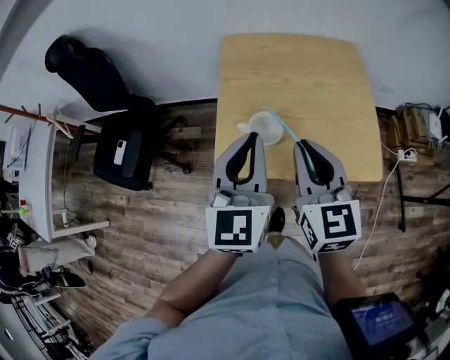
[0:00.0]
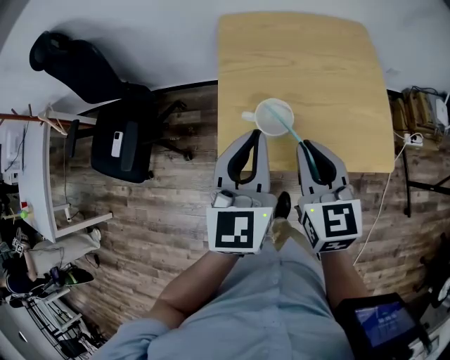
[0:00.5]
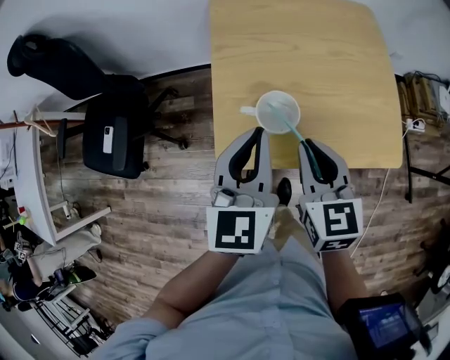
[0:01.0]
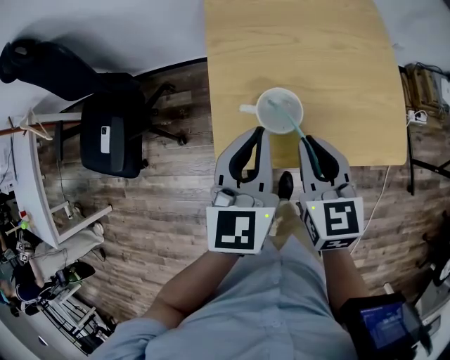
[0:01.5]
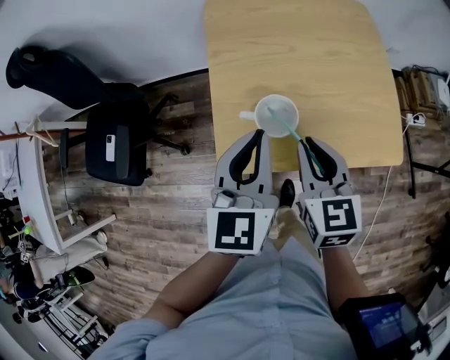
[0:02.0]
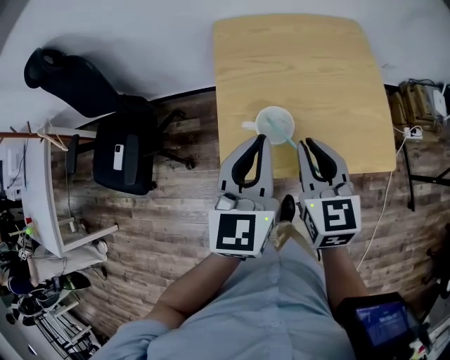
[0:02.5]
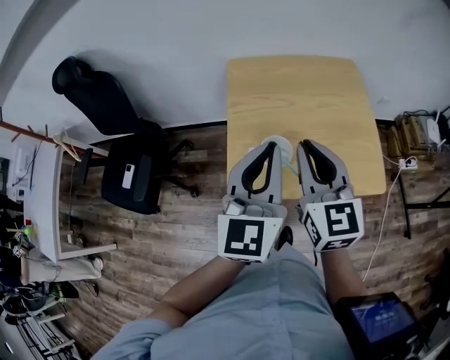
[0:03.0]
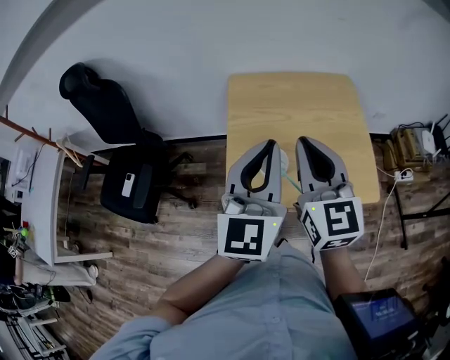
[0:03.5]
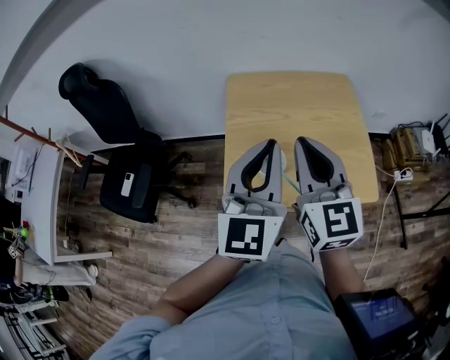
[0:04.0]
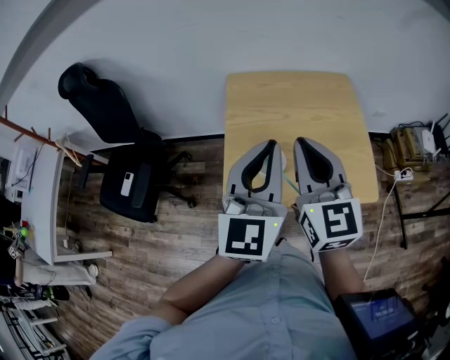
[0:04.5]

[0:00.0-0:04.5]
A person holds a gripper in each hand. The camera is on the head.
0:00.0 to 0:02.0: The grippers both shift downward by approximately 10 cm.
0:02.0 to 0:04.5: The two grippers go roughly 20 cm upward. The right gripper swivels approximately 30 degrees. Meanwhile the left gripper swivels about 20 degrees.

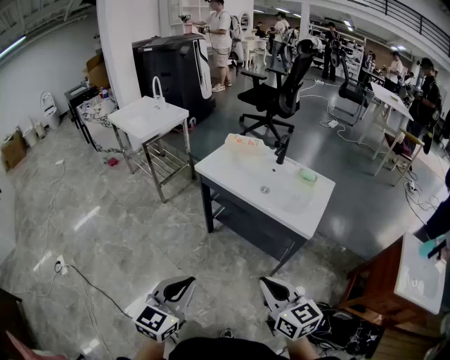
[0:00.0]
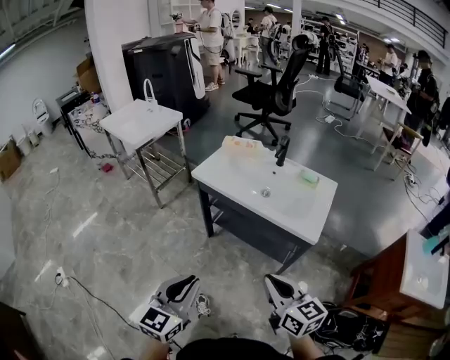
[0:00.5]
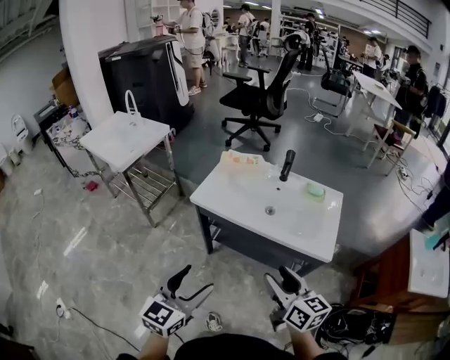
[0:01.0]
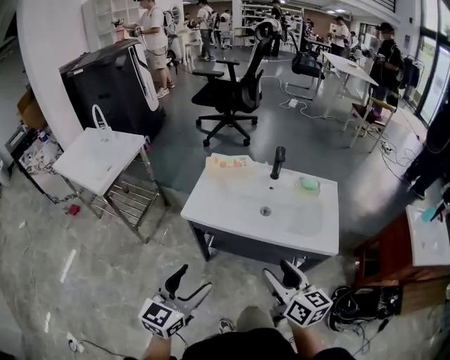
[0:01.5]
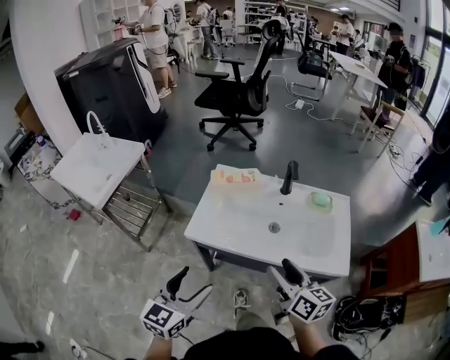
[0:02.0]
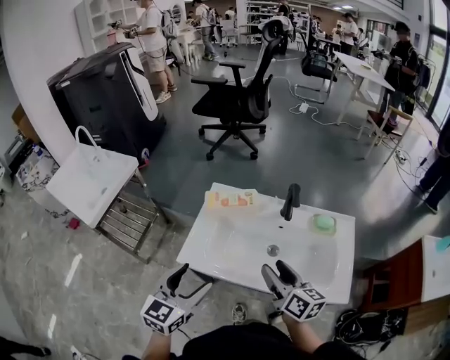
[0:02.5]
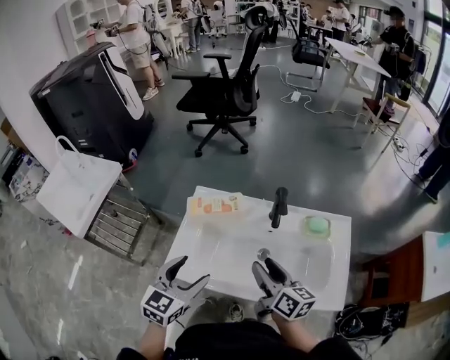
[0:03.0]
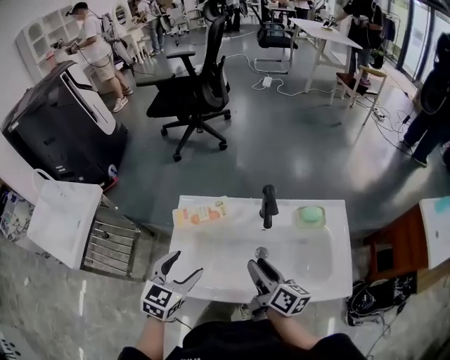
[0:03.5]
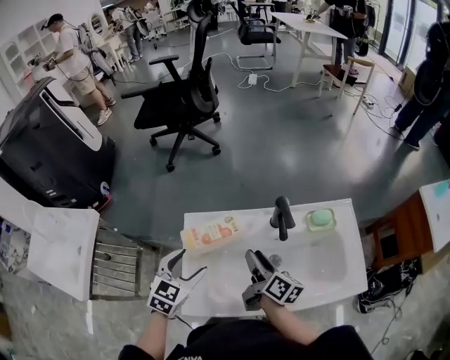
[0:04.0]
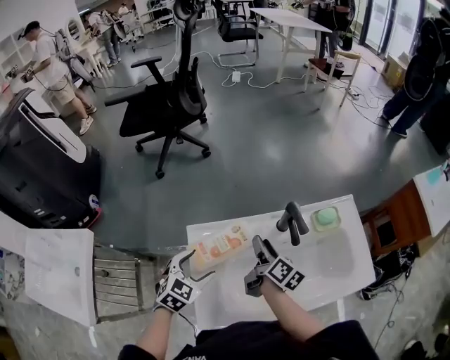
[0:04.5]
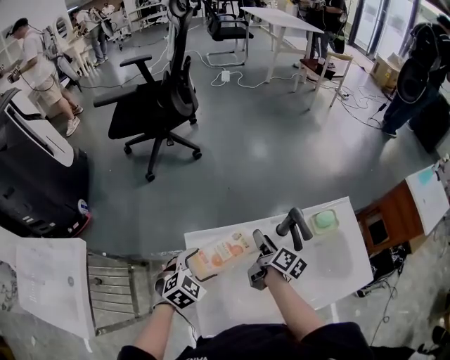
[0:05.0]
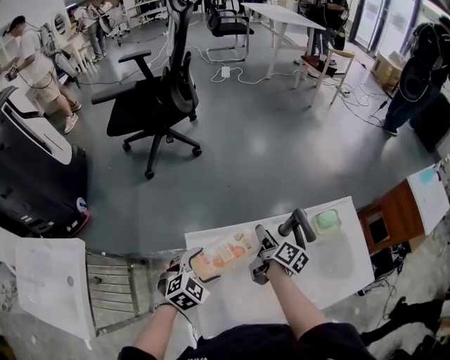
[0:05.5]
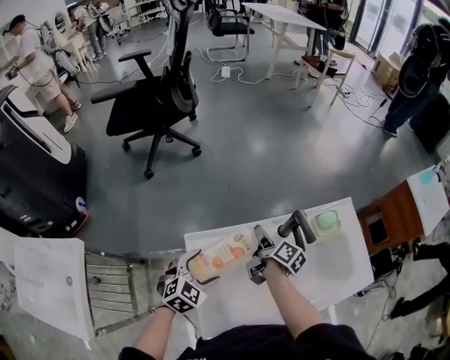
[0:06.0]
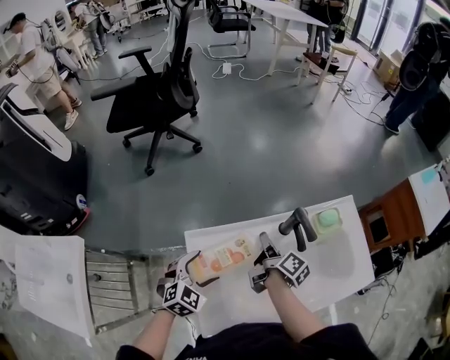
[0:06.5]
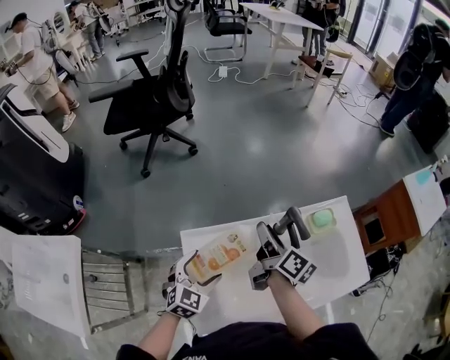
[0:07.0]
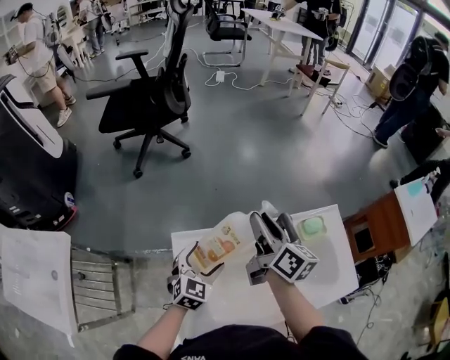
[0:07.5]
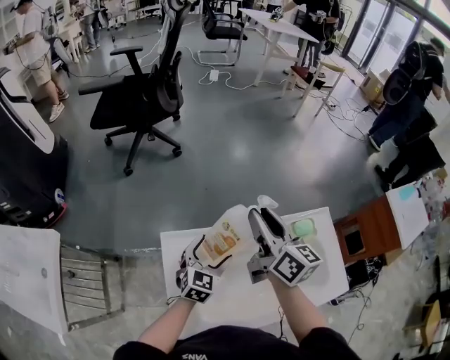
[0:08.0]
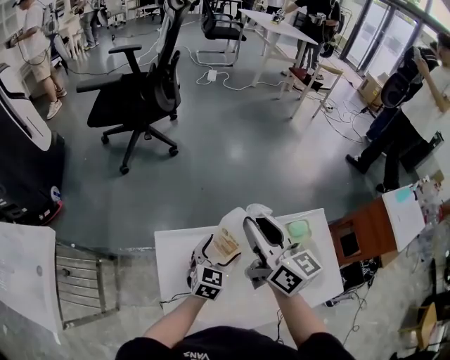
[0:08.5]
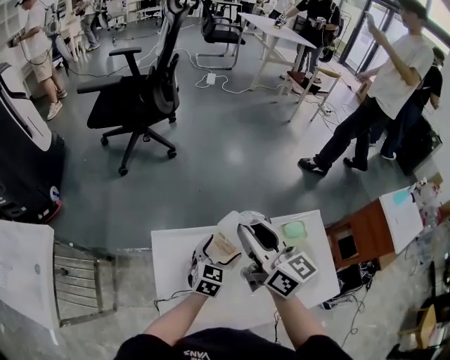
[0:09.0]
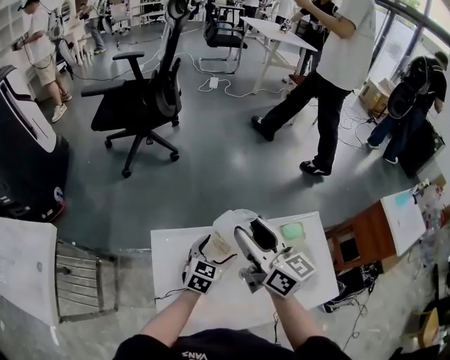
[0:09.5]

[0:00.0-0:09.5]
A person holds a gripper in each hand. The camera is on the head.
0:00.0 to 0:02.0: The left gripper moves forward and to the left, roughly 40 cm, and opens. The right gripper goes some 35 cm forward, swivels some 40 degrees, and opens its fingers.
0:02.0 to 0:04.0: Both grippers move forward, approximately 35 cm. The left gripper rotates approximately 30 degrees; the right gripper swivels roughly 40 degrees.
0:04.0 to 0:05.5: The right gripper shifts about 15 cm forward. The left gripper is displaced downward and forward by approximately 10 cm, and rotates about 30 degrees.
0:05.5 to 0:07.5: The left gripper ends up about 5 cm from where it was, and turns by some 30 degrees, while the right gripper is displaced upward by about 20 cm, and changes its angle by about 30 degrees.
0:07.5 to 0:09.5: The right gripper travels upward by about 5 cm, and changes its angle by roughly 30 degrees; the left gripper moves to the right, approximately 10 cm.

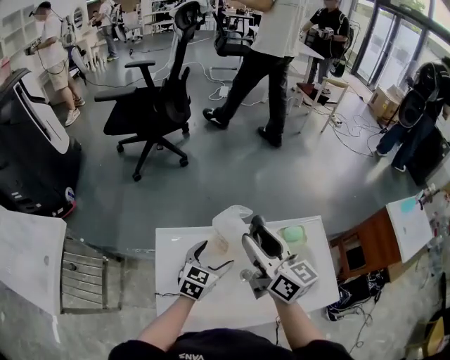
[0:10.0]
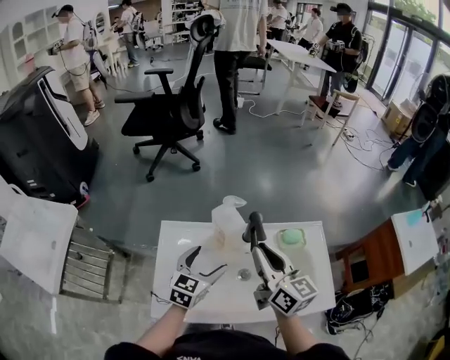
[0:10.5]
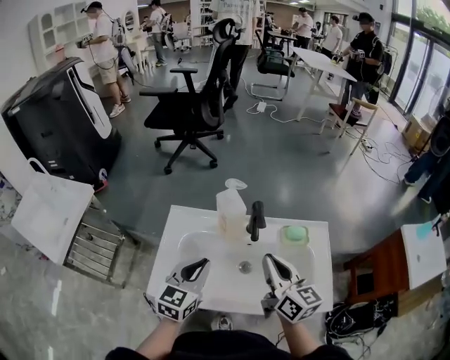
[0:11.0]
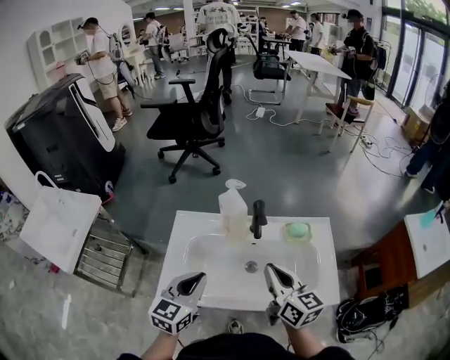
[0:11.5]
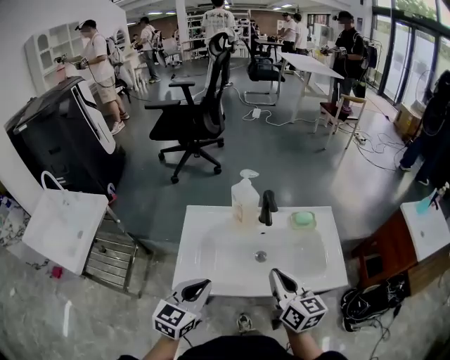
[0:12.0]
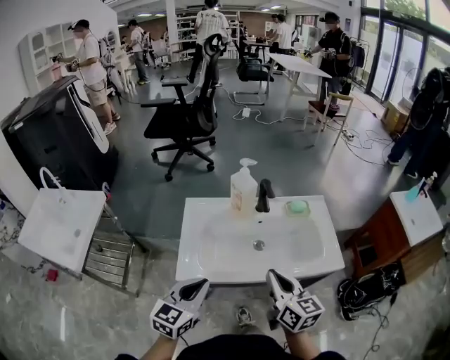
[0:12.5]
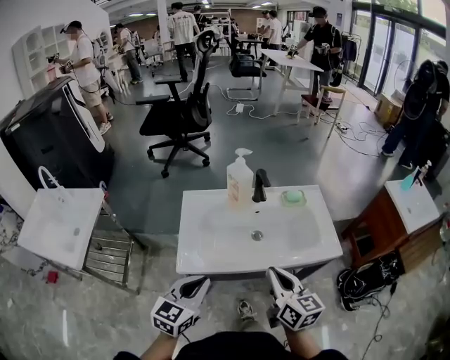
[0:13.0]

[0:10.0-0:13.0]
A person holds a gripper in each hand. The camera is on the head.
0:10.0 to 0:11.5: The left gripper is displaced backward and upward by roughly 25 cm, changes its angle by roughly 20 degrees, and closes its fingers. Meanwhile the right gripper shifts roughly 20 cm backward and to the right, and closes.
0:11.5 to 0:13.0: Both grippers move backward, about 15 cm.

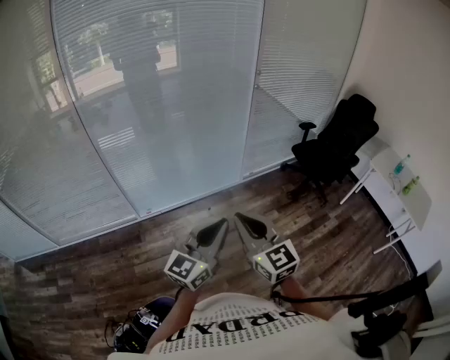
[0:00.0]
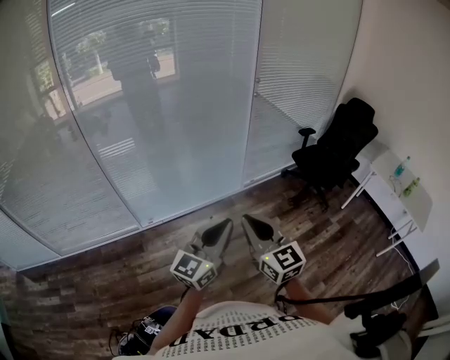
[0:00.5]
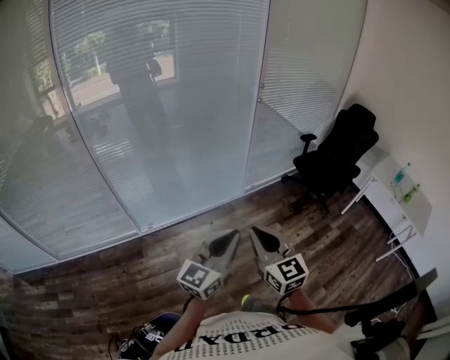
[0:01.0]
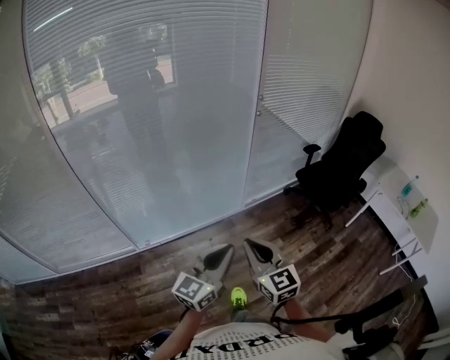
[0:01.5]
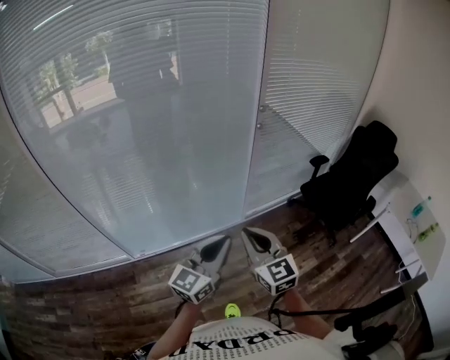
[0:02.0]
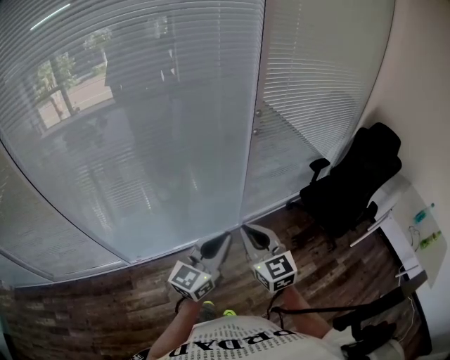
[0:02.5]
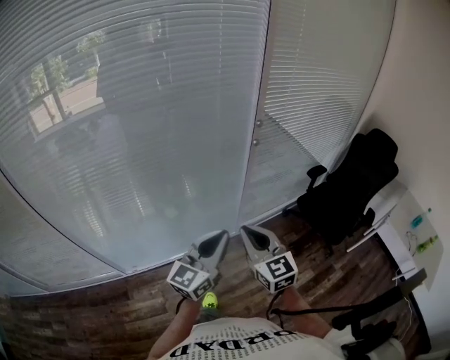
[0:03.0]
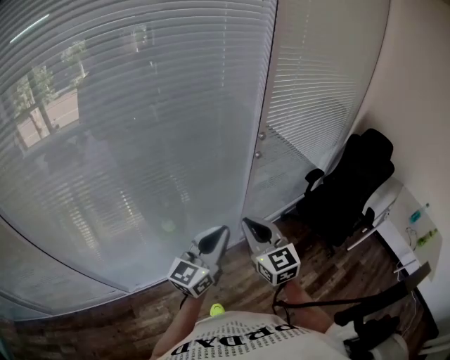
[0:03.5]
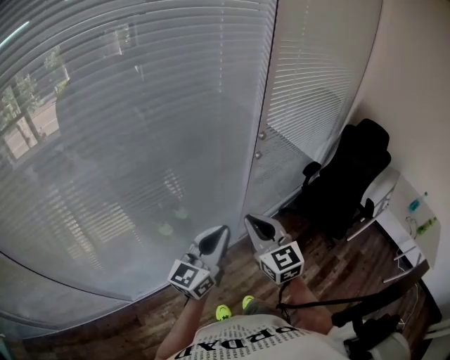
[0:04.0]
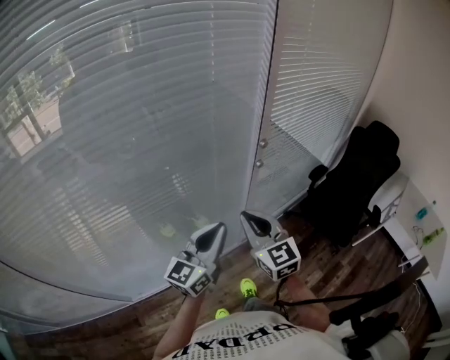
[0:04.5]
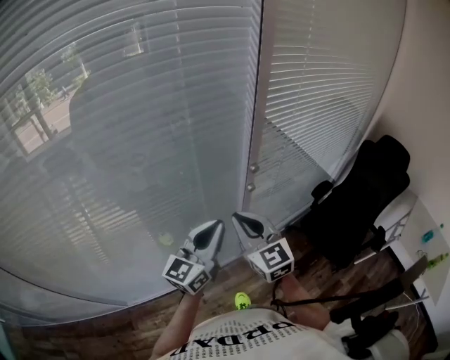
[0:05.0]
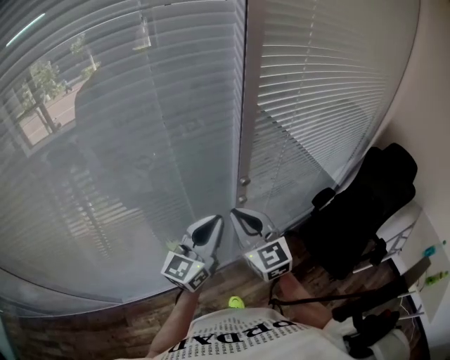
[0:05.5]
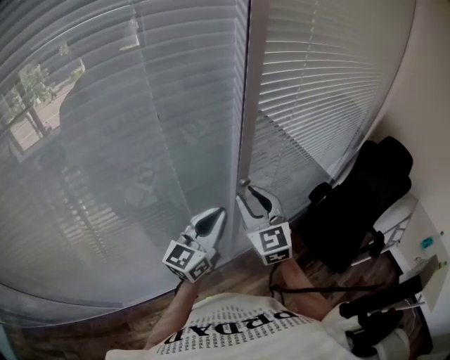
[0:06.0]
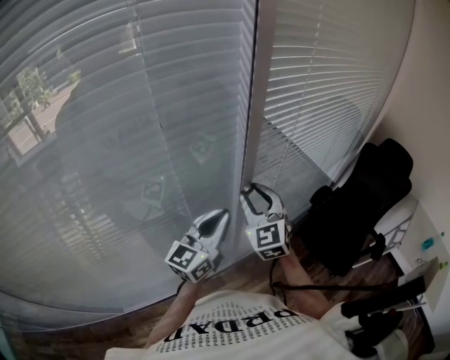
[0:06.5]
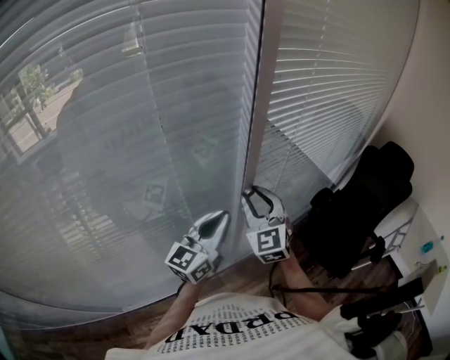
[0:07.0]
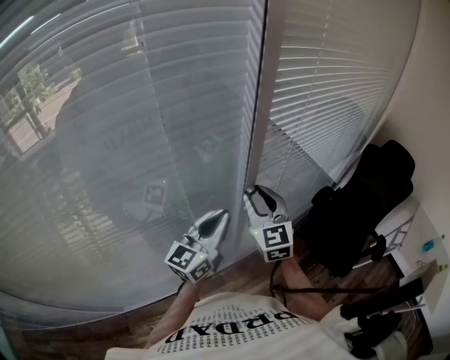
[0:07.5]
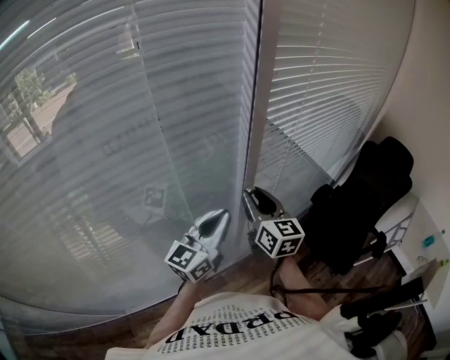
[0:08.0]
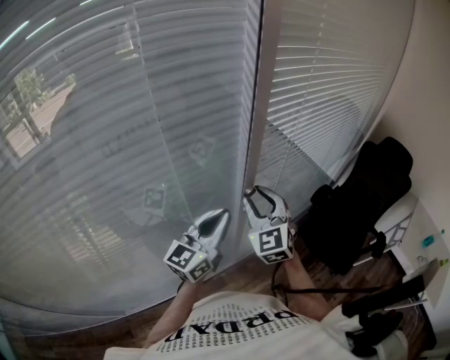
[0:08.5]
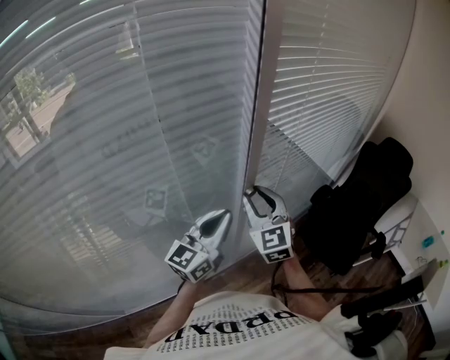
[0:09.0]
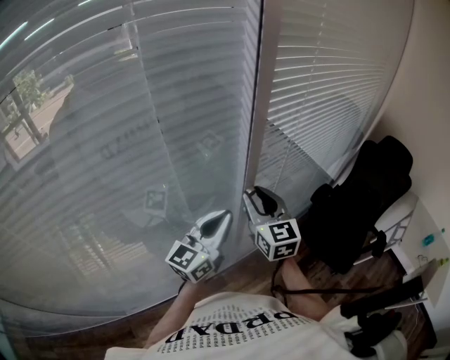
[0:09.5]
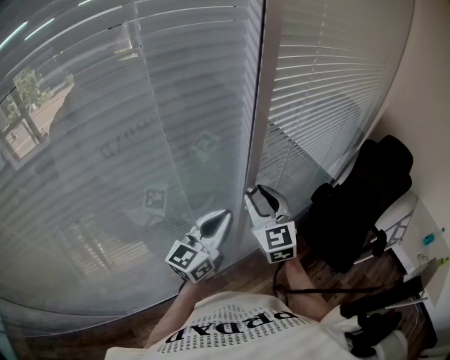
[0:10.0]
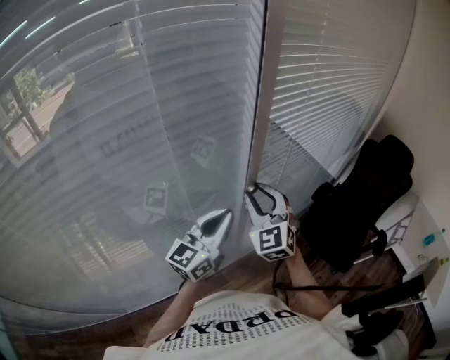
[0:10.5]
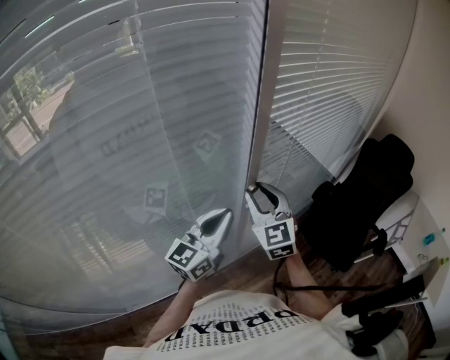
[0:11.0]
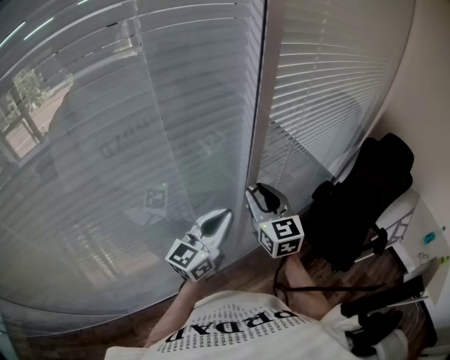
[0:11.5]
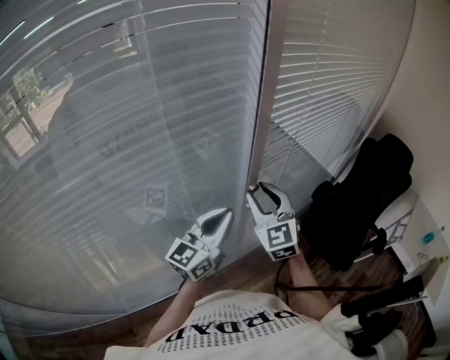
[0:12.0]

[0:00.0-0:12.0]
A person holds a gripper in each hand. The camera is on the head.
0:00.0 to 0:02.0: The grippers both shift forward by approximately 35 cm.
0:02.0 to 0:04.0: The grippers both shift forward by about 25 cm.
0:04.0 to 0:06.0: The right gripper moves forward, approximately 30 cm, and opens its fingers. The left gripper heads forward and to the right, covering roughly 30 cm.
0:06.0 to 0:08.0: The right gripper changes its angle by some 30 degrees.
0:08.0 to 0:10.0: The right gripper turns by roughly 30 degrees.
0:10.0 to 0:12.0: The grippers move only a little.
